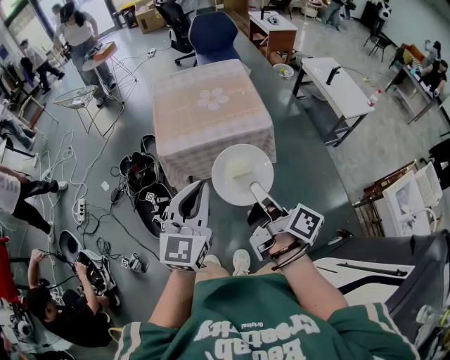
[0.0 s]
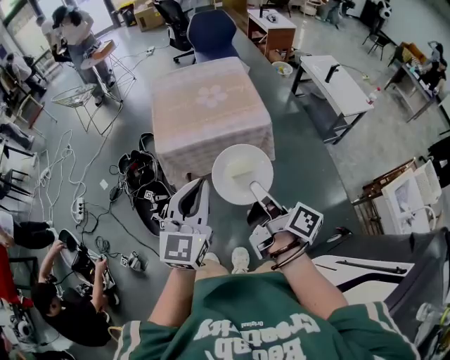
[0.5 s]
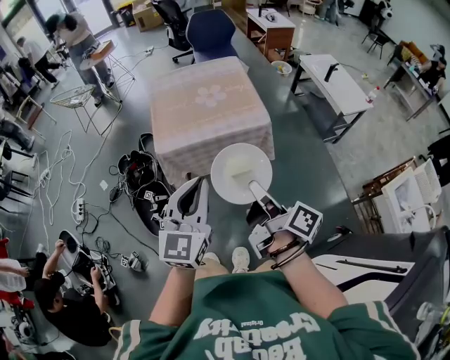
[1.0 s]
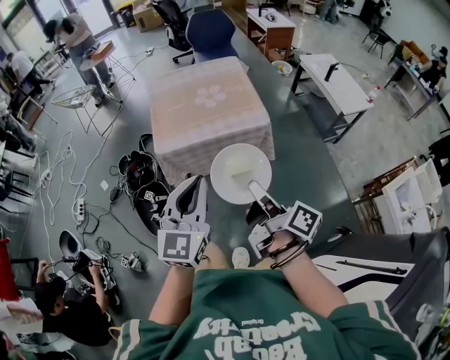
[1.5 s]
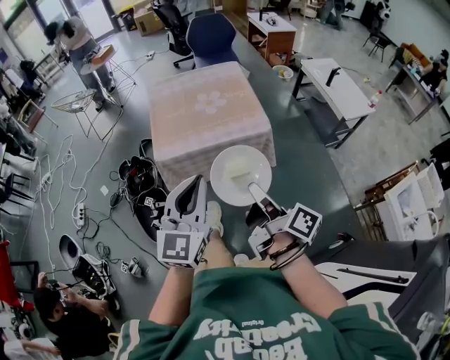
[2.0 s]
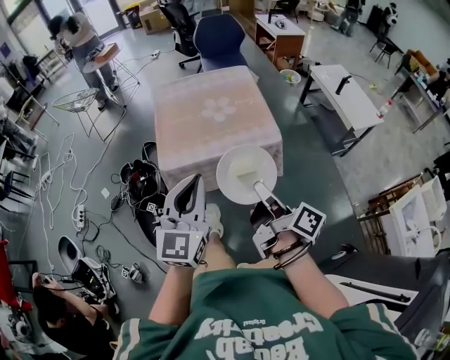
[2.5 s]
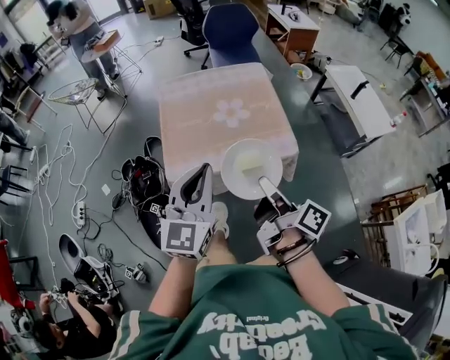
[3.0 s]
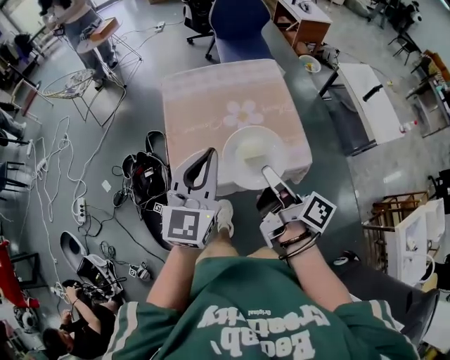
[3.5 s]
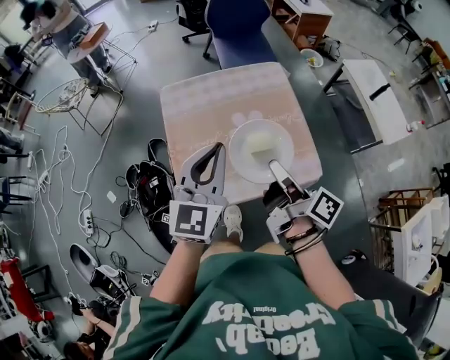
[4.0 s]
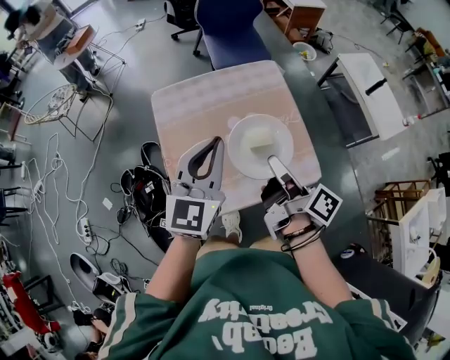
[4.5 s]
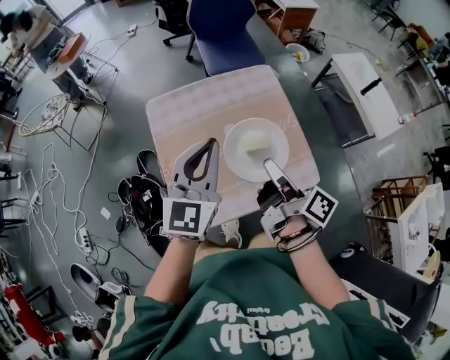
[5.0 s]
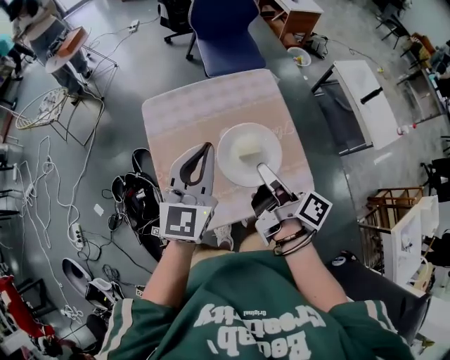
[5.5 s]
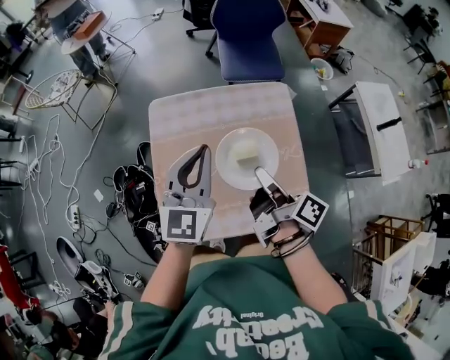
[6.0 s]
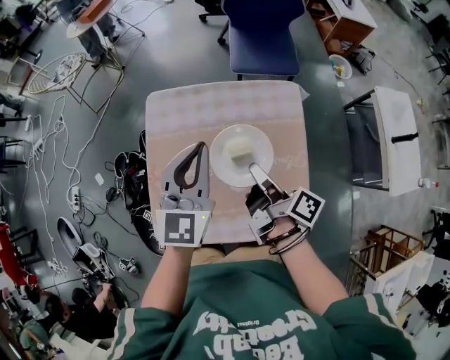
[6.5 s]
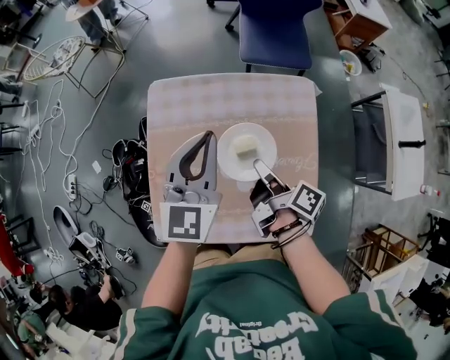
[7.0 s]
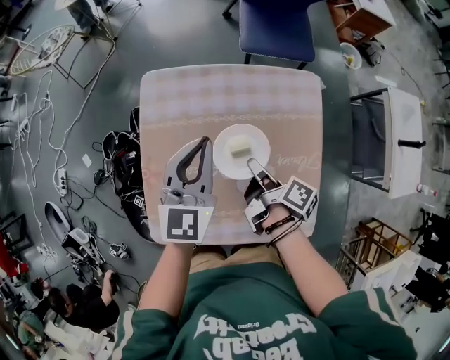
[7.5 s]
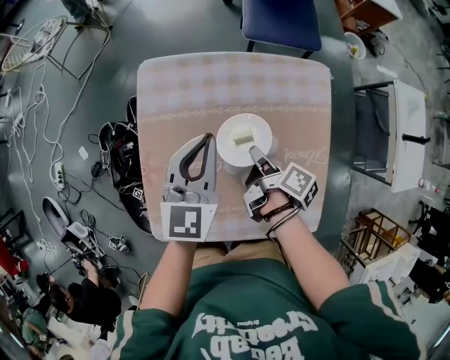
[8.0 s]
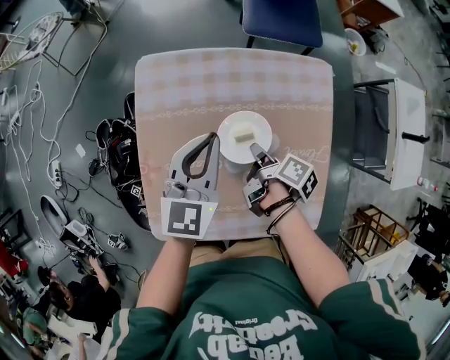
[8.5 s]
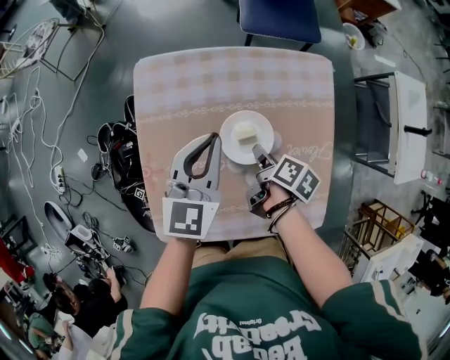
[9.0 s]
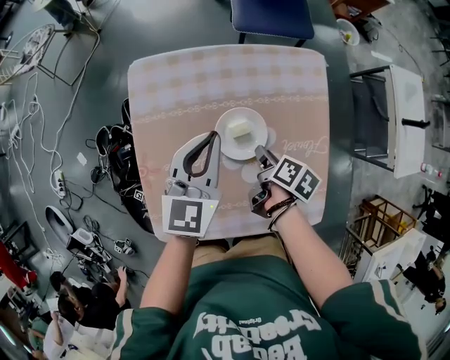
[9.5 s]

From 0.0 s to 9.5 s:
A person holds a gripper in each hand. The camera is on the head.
From 0.0 s to 2.0 s: The grippers move only a little.
From 2.0 s to 4.0 s: The two grippers go approximately 40 cm forward.
From 4.0 s to 5.5 s: Both grippers travel together forward, some 10 cm.
From 5.5 s to 7.5 s: The left gripper heads forward and downward, covering some 20 cm, and swivels roughly 20 degrees; the right gripper goes about 25 cm downward and forward, and rotates roughly 30 degrees.
From 7.5 s to 9.5 s: The two grippers go some 5 cm downward. The right gripper turns by some 30 degrees, and opens.

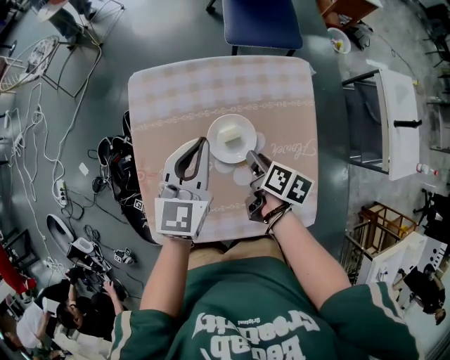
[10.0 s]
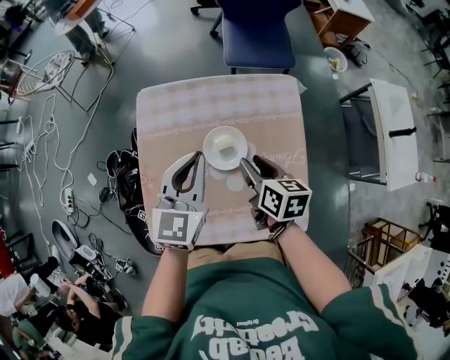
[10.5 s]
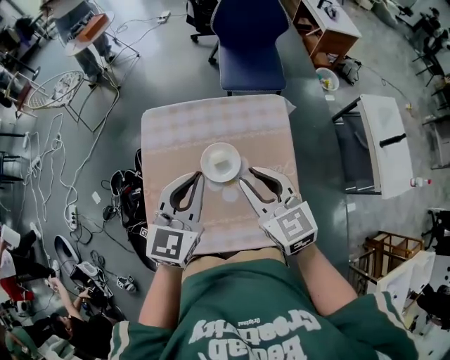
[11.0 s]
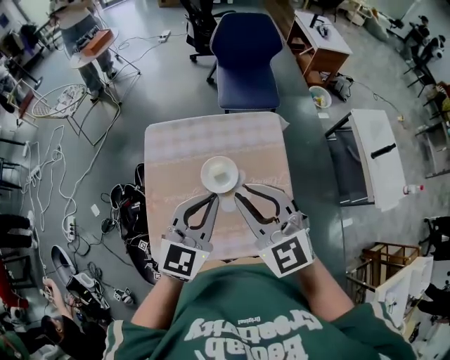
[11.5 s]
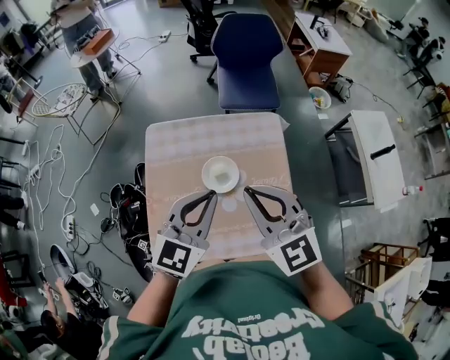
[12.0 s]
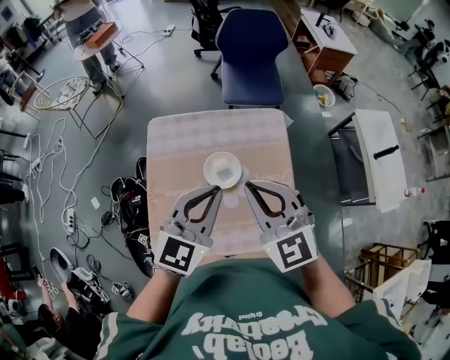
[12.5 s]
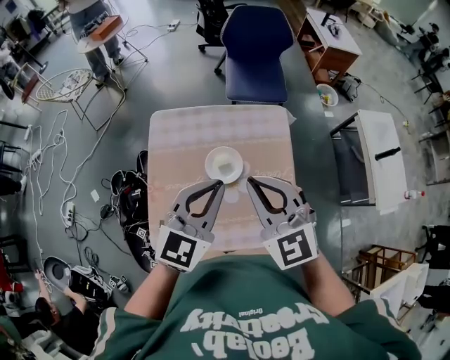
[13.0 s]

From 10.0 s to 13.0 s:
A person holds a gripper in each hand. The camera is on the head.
From 10.0 s to 11.5 s: The right gripper travels upward by roughly 30 cm, and rolls counterclockwise, seen from behind, by about 90 degrees; the left gripper goes some 20 cm upward, backward and to the right.
From 11.5 s to 13.0 s: The grippers make only small movements.

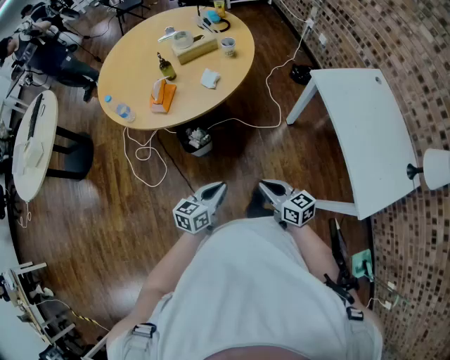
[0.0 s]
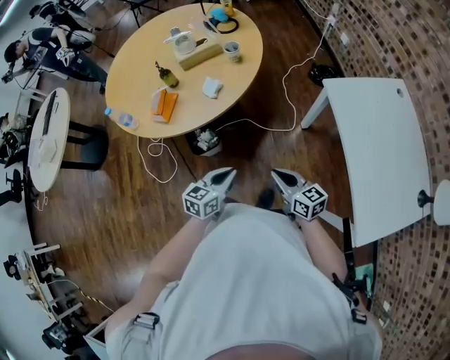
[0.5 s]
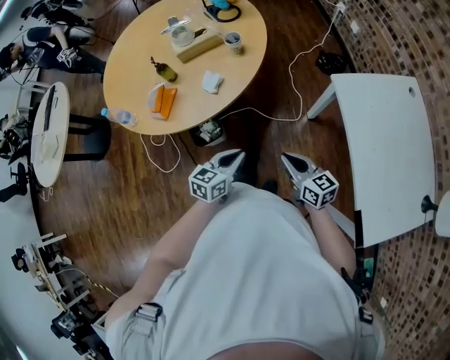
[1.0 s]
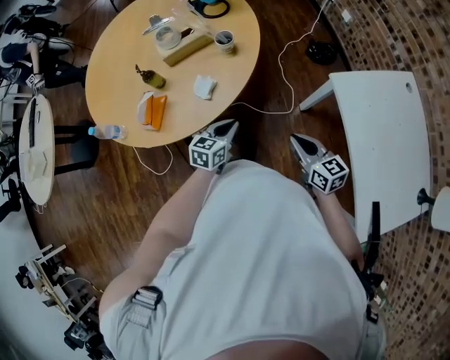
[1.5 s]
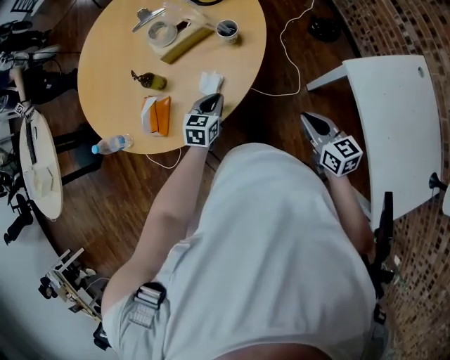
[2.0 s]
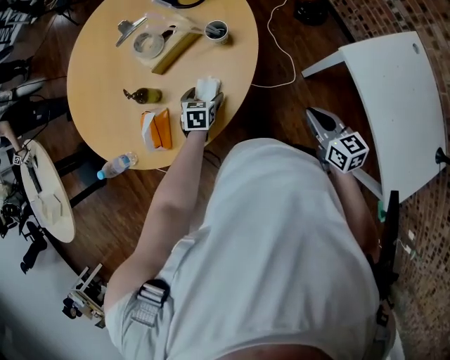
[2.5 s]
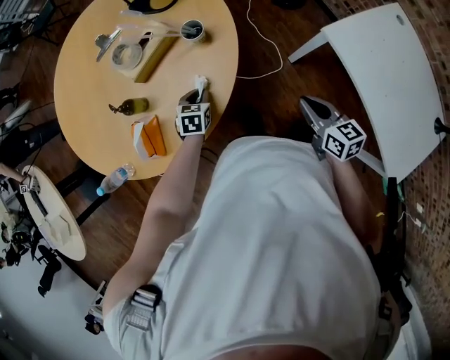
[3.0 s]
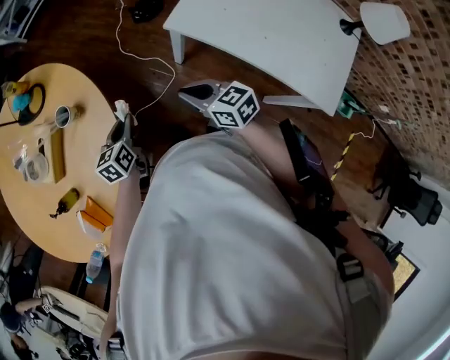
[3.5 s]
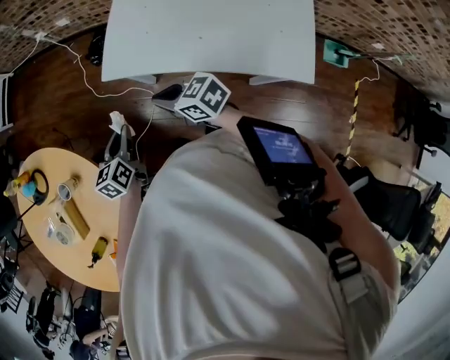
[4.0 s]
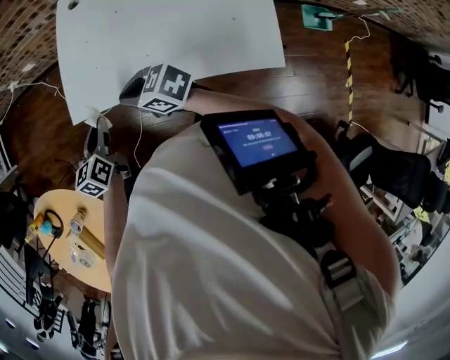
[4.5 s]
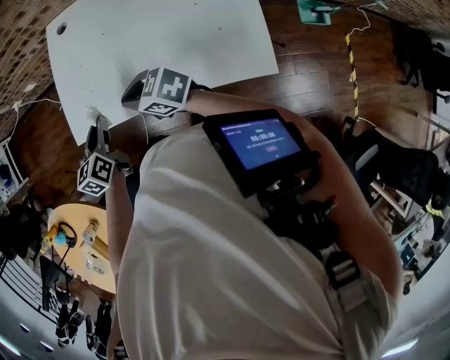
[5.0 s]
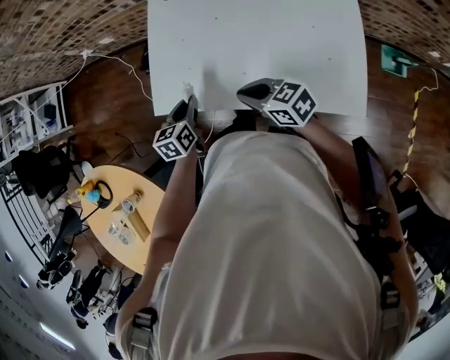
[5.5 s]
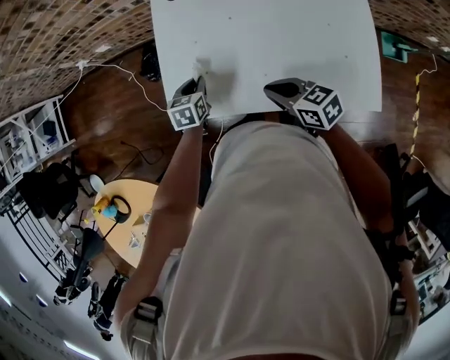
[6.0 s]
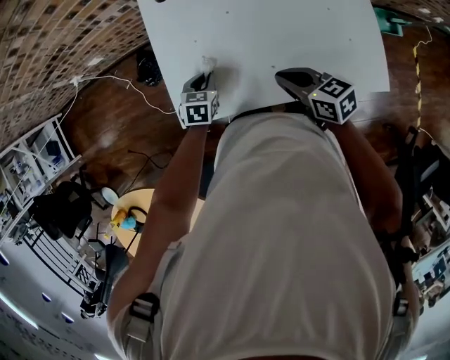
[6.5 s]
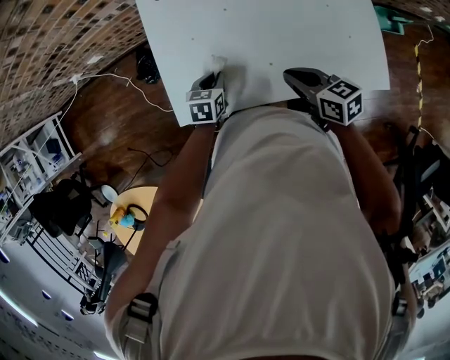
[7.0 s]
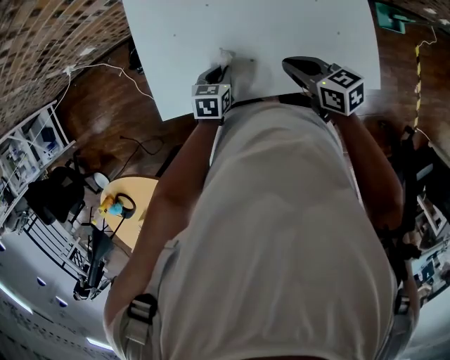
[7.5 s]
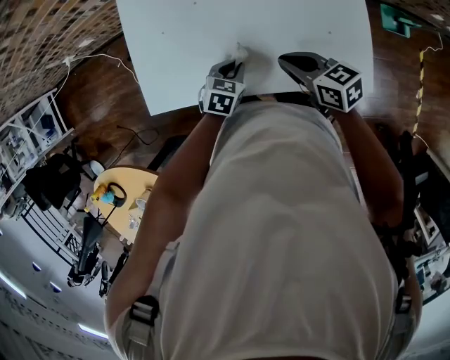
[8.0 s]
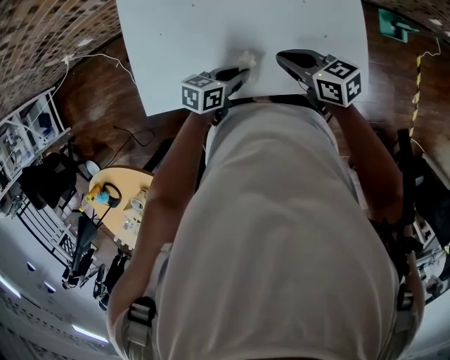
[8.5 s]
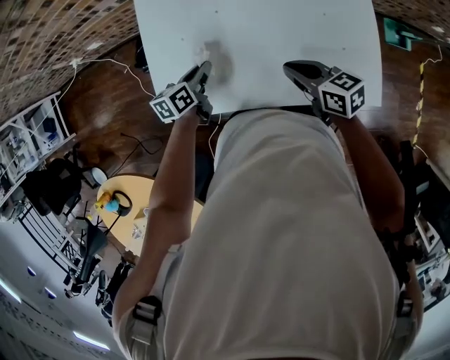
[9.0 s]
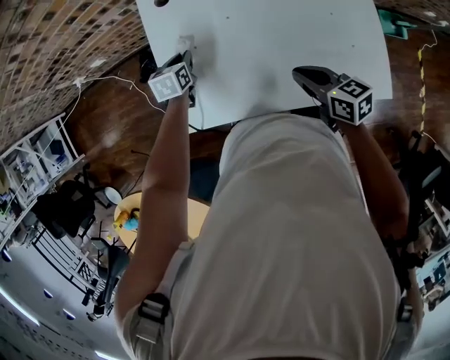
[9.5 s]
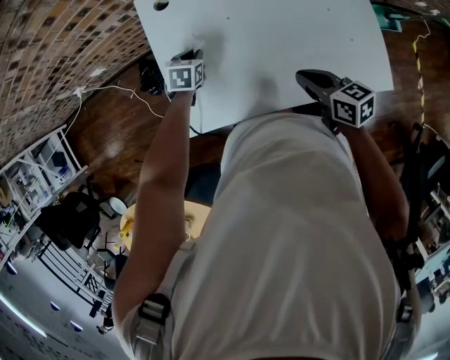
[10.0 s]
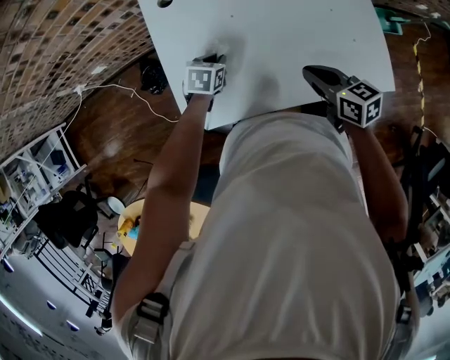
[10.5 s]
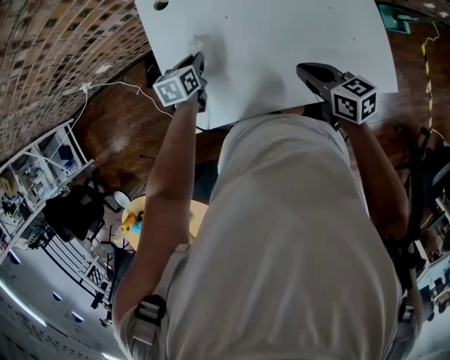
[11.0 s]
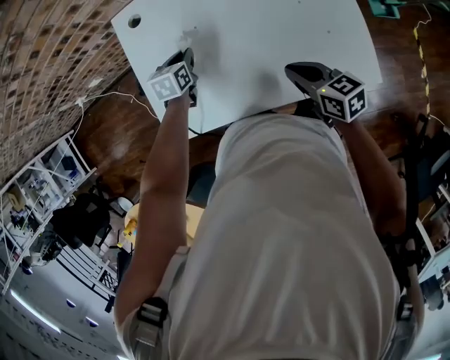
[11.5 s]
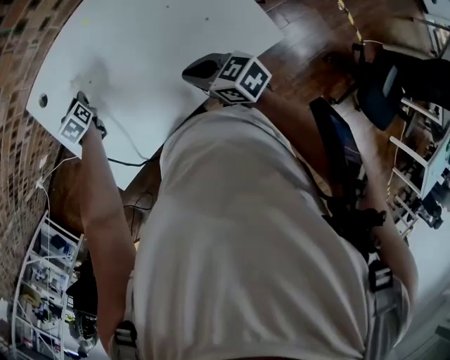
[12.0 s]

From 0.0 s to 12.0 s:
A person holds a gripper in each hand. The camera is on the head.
From 0.0 s to 2.0 s: Both grippers move forward, some 40 cm. The left gripper turns by some 20 degrees.
From 2.0 s to 4.0 s: The left gripper shifts by some 35 cm, changes its angle by approximately 40 degrees, and opens and closes again. The right gripper ends up about 20 cm from where it was, and turns by some 30 degrees.
From 4.0 s to 6.0 s: The left gripper heads forward and to the right, covering roughly 35 cm, and changes its angle by roughly 30 degrees, while the right gripper is displaced to the right and forward by about 20 cm, and swivels roughly 20 degrees.
From 6.0 s to 8.0 s: The left gripper is displaced to the right and backward by roughly 25 cm, and changes its angle by approximately 30 degrees; the right gripper is displaced to the right by roughly 15 cm.
From 8.0 s to 10.0 s: The right gripper moves some 10 cm. Meanwhile the left gripper moves approximately 30 cm.
From 10.0 s to 12.0 s: The left gripper is displaced forward and to the right by some 10 cm. Meanwhile the right gripper is displaced to the right by some 10 cm.

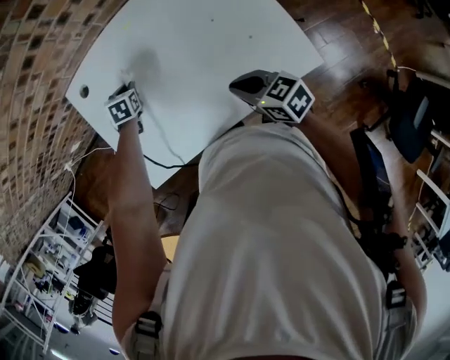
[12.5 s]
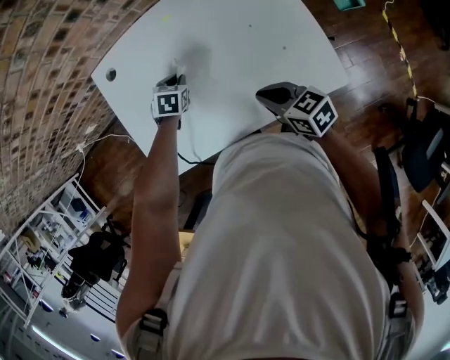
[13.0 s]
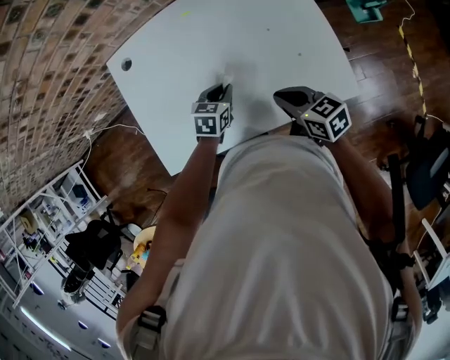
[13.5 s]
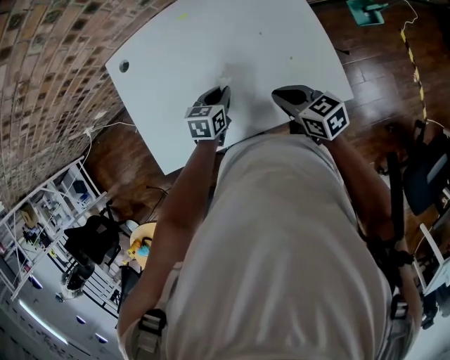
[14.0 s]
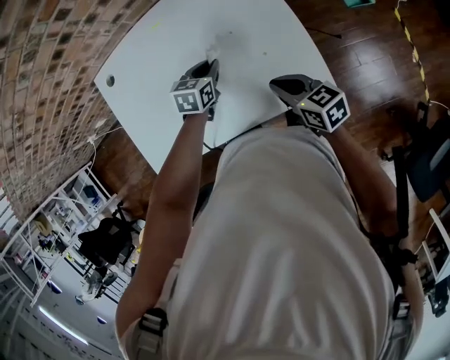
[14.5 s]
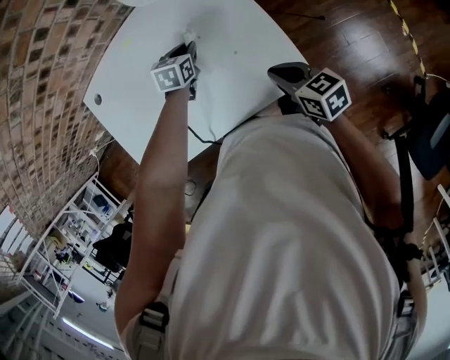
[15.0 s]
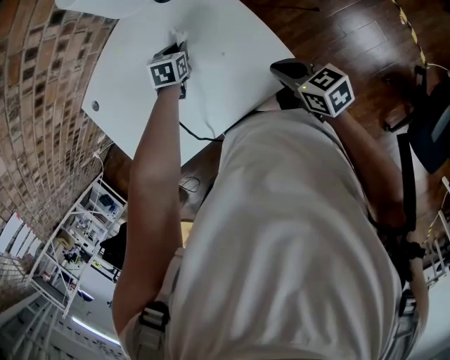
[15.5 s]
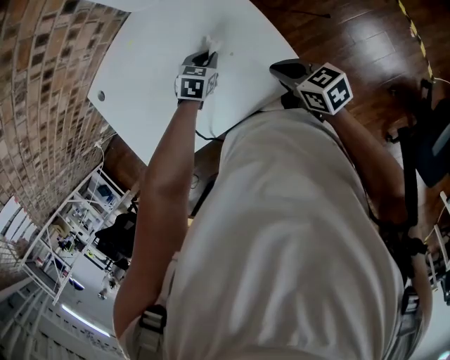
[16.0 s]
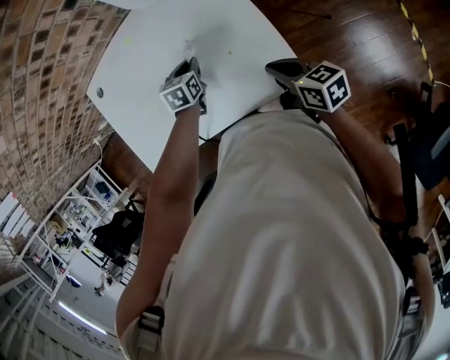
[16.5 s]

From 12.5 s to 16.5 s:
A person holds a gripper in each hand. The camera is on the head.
From 12.5 s to 14.5 s: The left gripper moves to the right, some 20 cm; the right gripper moves to the right, roughly 10 cm.
From 14.5 s to 16.5 s: The right gripper is displaced to the right by approximately 10 cm.
